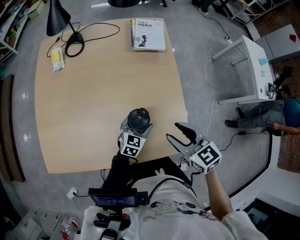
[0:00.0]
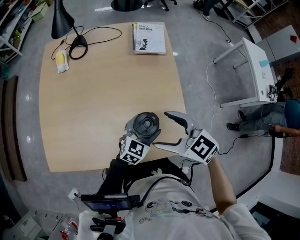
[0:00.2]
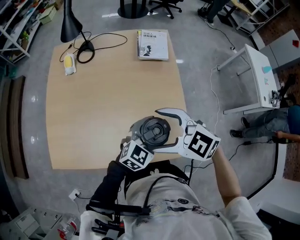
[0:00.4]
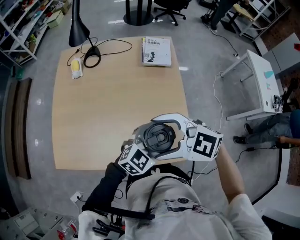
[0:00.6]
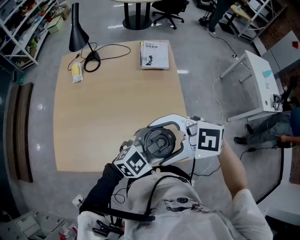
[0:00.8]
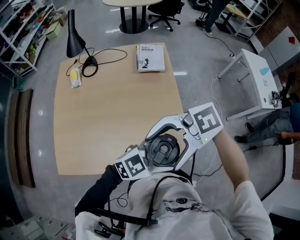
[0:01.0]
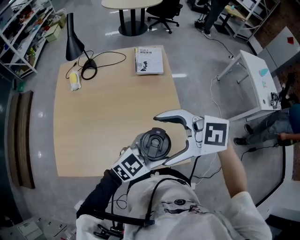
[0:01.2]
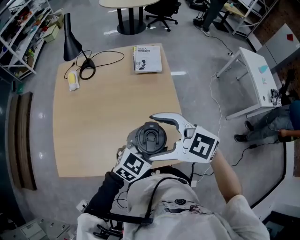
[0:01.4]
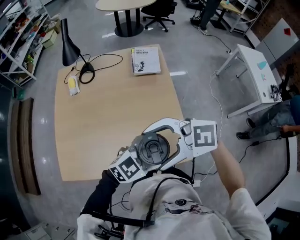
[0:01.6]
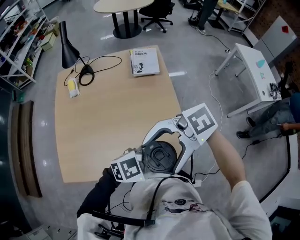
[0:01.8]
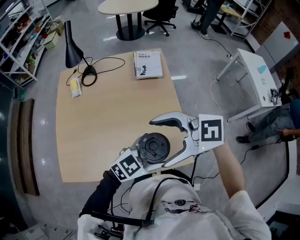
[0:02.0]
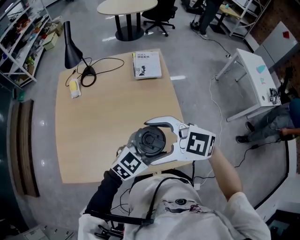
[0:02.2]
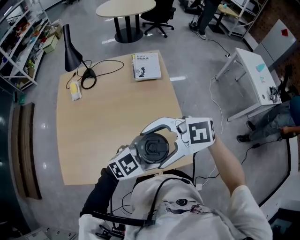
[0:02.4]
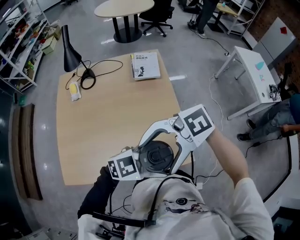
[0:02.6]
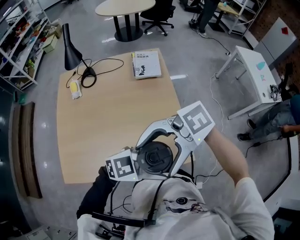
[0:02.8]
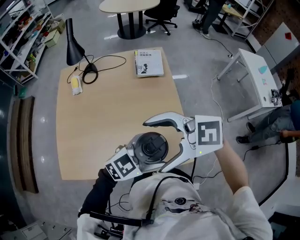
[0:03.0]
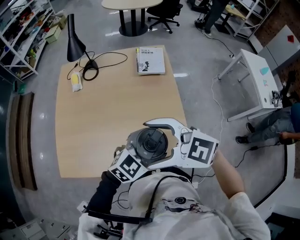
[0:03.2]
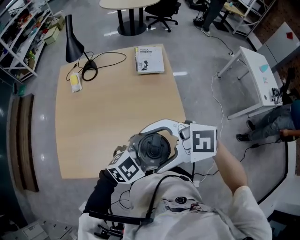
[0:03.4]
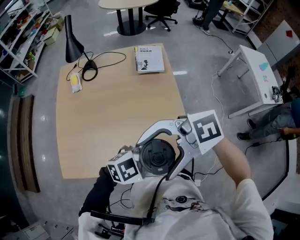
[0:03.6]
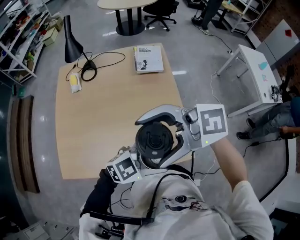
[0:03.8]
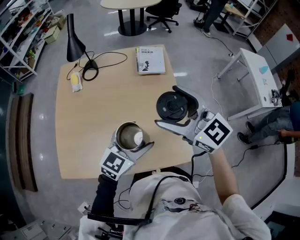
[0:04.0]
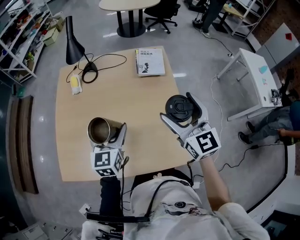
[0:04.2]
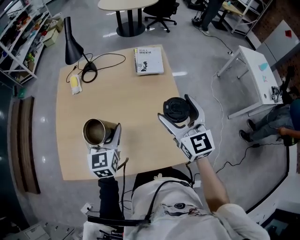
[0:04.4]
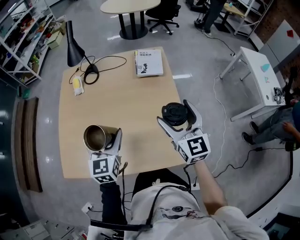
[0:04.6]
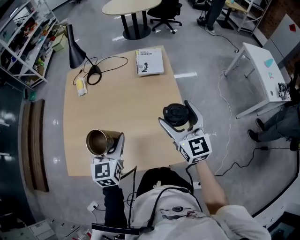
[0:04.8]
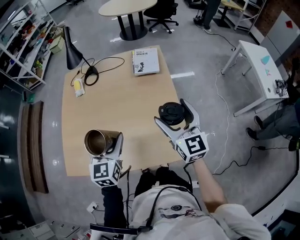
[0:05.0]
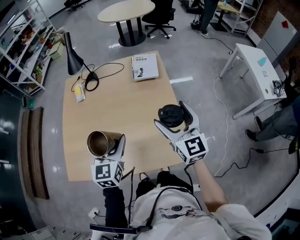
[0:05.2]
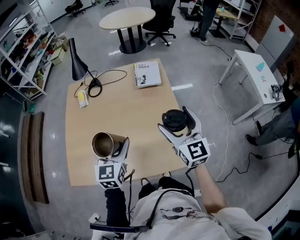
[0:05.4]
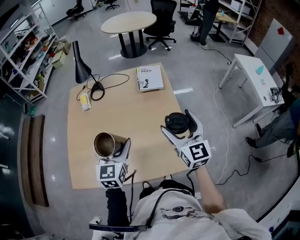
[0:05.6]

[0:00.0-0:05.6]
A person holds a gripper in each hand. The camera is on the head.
0:00.0 to 0:01.4: The right gripper heads upward, covering roughly 15 cm, swivels some 40 degrees, and opens up, while the left gripper moves upward, about 25 cm, and rotates roughly 20 degrees.
0:01.4 to 0:02.8: The right gripper moves roughly 10 cm, and swivels about 50 degrees. The left gripper shifts by roughly 10 cm, and changes its angle by about 40 degrees.
0:02.8 to 0:04.2: The right gripper changes place by roughly 20 cm, and turns by approximately 100 degrees. The left gripper moves approximately 30 cm, and turns by roughly 90 degrees.
0:04.2 to 0:05.6: The two grippers go some 5 cm backward.

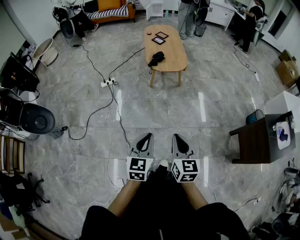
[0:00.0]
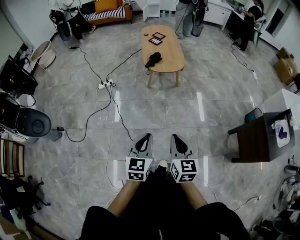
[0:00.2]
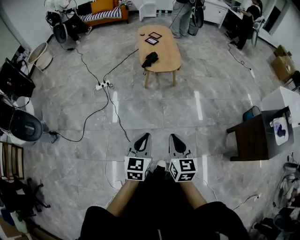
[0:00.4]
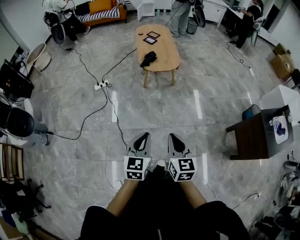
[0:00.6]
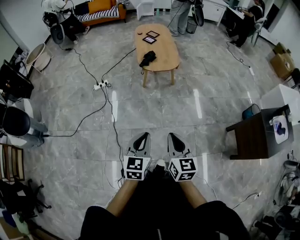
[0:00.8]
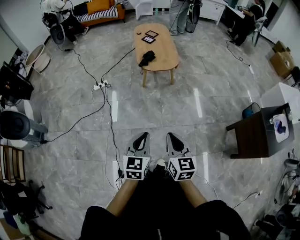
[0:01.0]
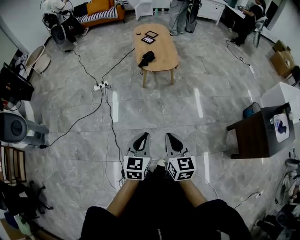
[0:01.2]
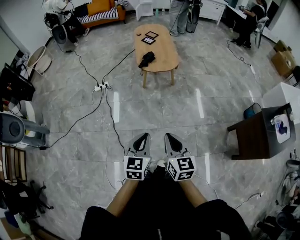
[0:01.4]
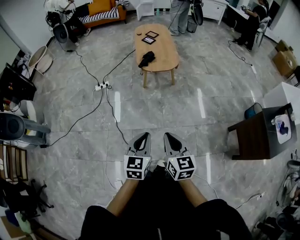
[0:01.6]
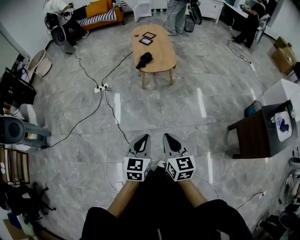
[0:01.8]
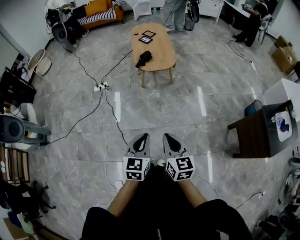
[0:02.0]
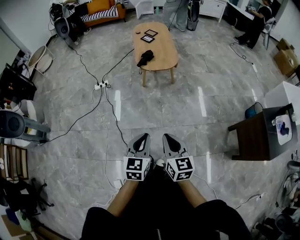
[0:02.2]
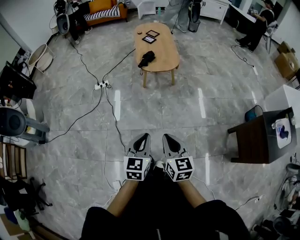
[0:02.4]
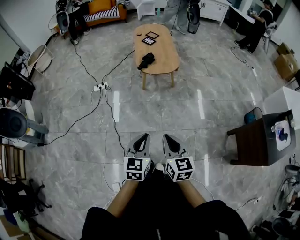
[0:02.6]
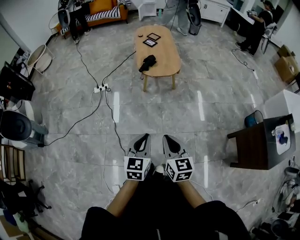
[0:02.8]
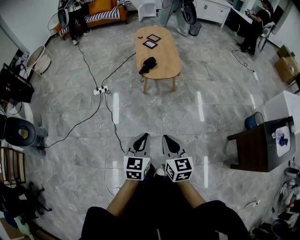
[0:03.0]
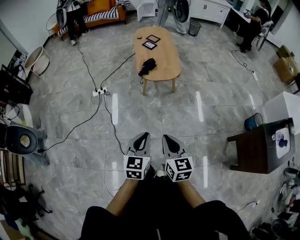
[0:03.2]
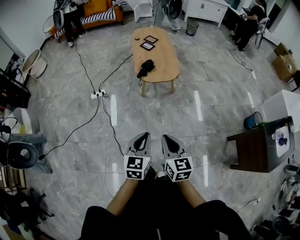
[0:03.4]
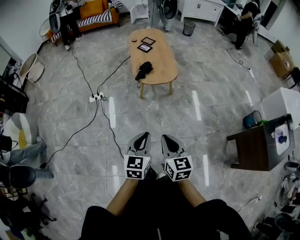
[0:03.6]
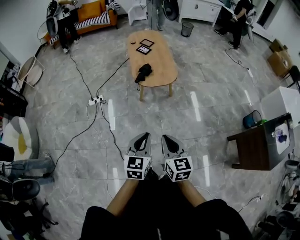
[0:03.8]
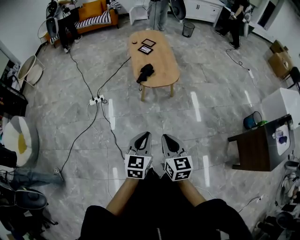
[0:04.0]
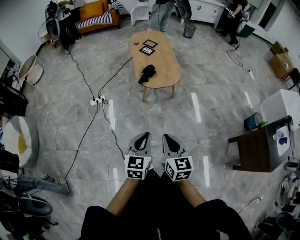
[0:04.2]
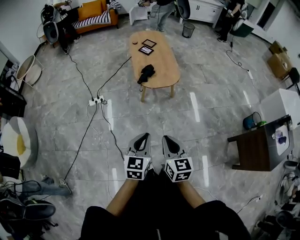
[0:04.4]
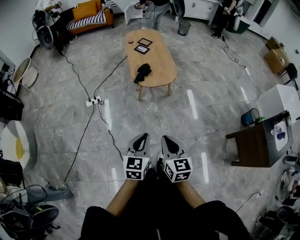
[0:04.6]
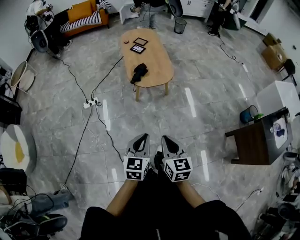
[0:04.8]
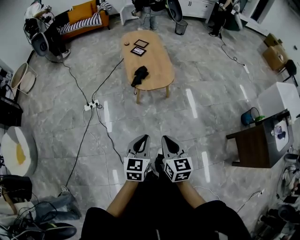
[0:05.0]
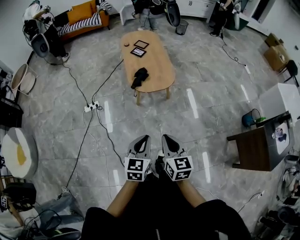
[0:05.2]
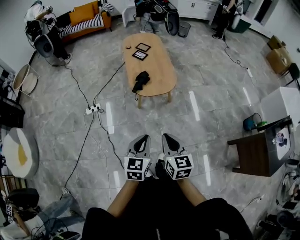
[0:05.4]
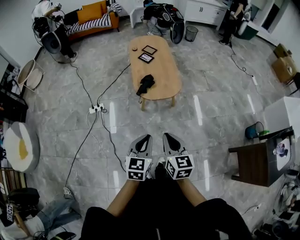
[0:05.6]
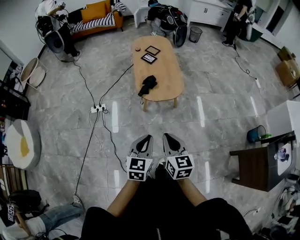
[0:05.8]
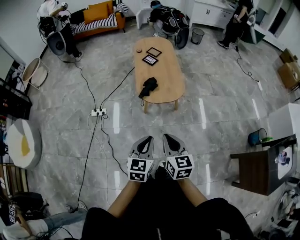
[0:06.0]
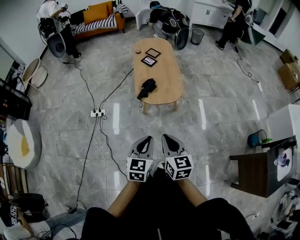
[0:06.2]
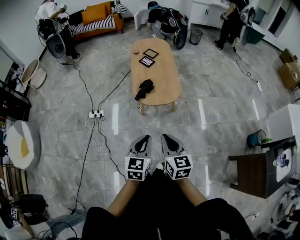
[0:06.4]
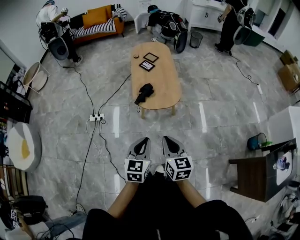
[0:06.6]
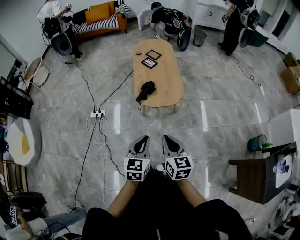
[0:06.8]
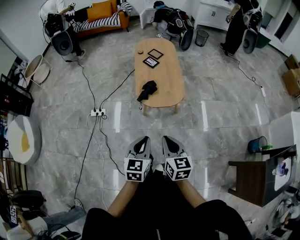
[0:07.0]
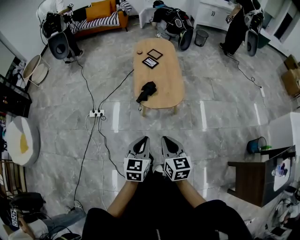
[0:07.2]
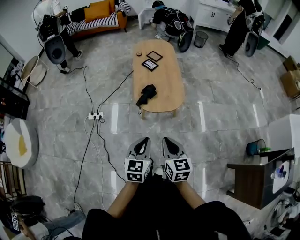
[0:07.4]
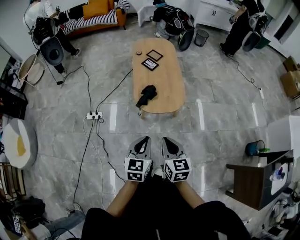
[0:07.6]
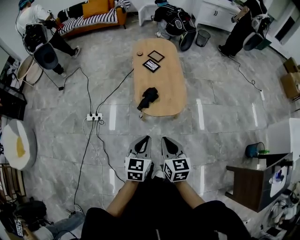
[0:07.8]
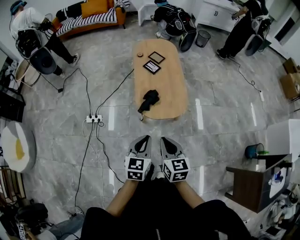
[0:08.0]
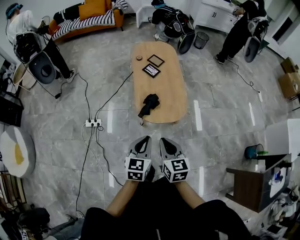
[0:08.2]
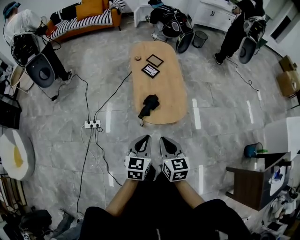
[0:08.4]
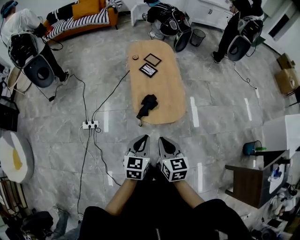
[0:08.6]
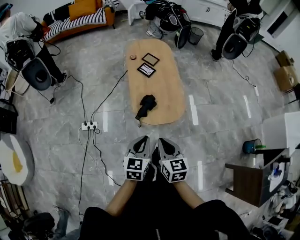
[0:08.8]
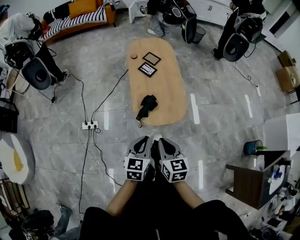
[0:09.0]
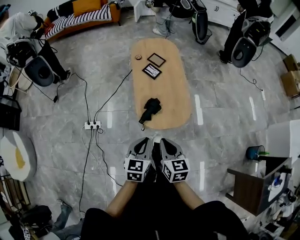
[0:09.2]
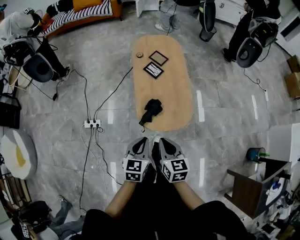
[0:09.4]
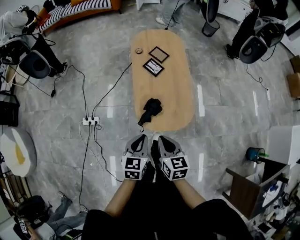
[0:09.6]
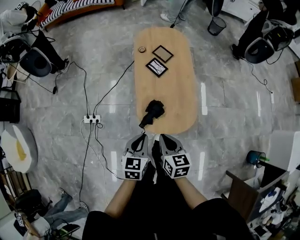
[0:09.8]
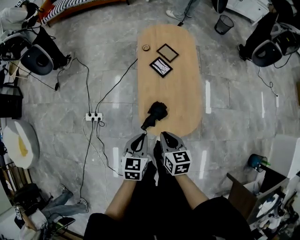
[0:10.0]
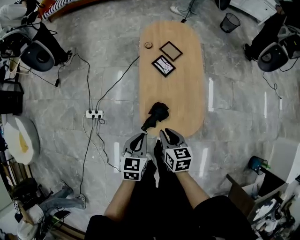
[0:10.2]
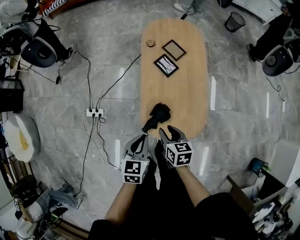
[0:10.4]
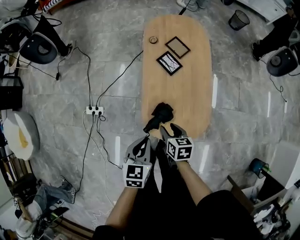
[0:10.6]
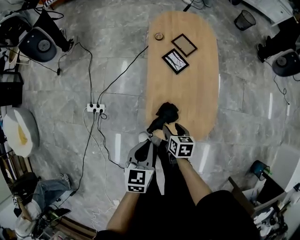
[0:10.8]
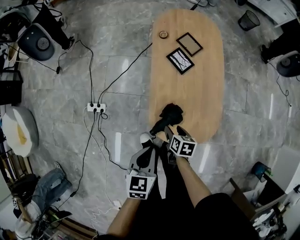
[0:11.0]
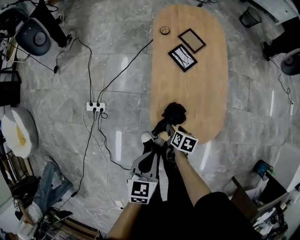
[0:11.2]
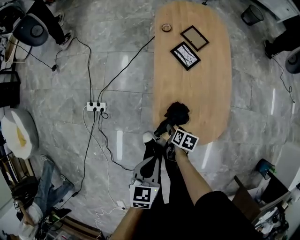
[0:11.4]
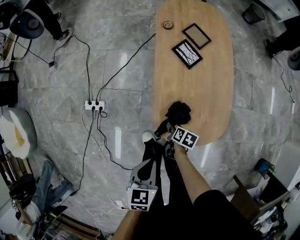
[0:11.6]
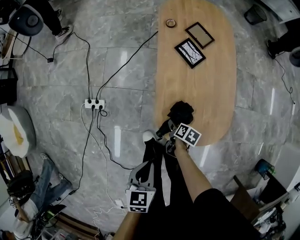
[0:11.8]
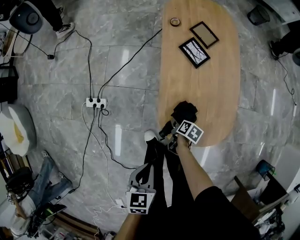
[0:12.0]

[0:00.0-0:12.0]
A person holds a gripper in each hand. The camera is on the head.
0:00.0 to 0:01.6: The left gripper shifts approximately 5 cm to the right.
0:01.6 to 0:03.0: The grippers both shift forward by approximately 10 cm.
0:03.0 to 0:04.4: Both grippers move forward and to the left, some 10 cm.
0:04.4 to 0:06.0: Both grippers travel together forward, about 15 cm.
0:06.0 to 0:07.6: The grippers both shift forward by about 10 cm.
0:07.6 to 0:09.0: The left gripper moves forward, some 15 cm. The right gripper travels forward and to the left by approximately 15 cm.
0:09.0 to 0:10.4: Both grippers travel together forward and downward, roughly 25 cm. The right gripper rotates roughly 20 degrees, and opens up.
0:10.4 to 0:12.0: The right gripper is displaced downward by some 30 cm, twists about 40 degrees clockwise, seen from behind, and opens. Meanwhile the left gripper is displaced downward, to the left and backward by approximately 15 cm.

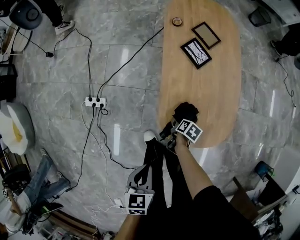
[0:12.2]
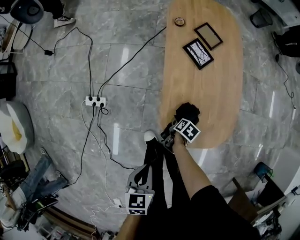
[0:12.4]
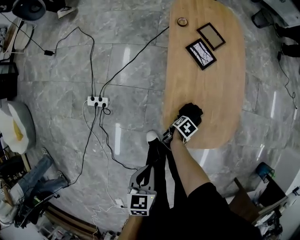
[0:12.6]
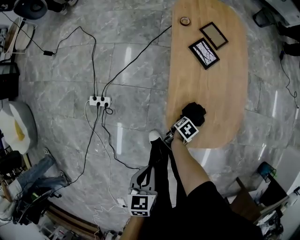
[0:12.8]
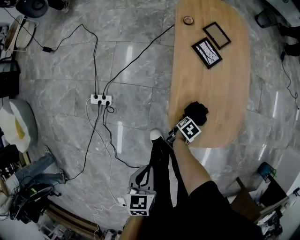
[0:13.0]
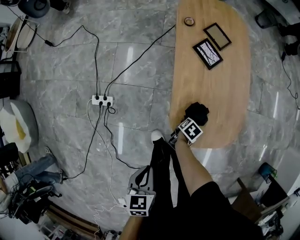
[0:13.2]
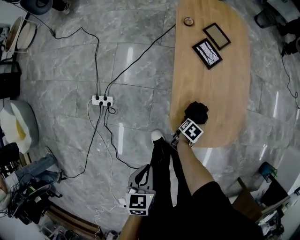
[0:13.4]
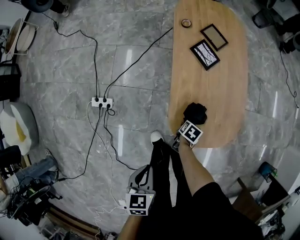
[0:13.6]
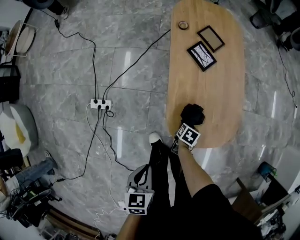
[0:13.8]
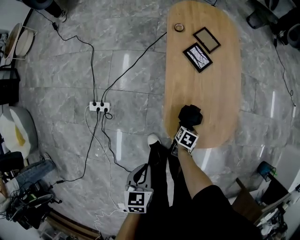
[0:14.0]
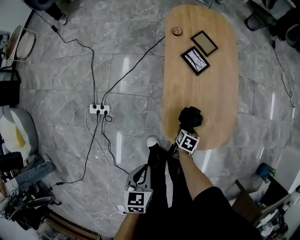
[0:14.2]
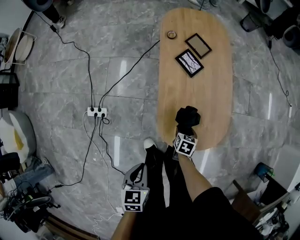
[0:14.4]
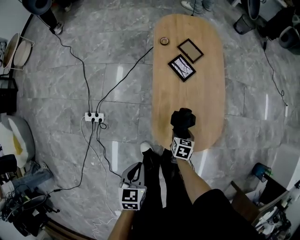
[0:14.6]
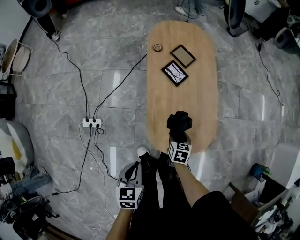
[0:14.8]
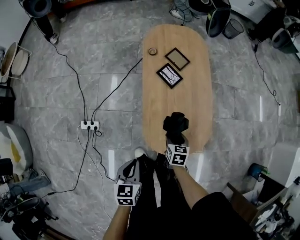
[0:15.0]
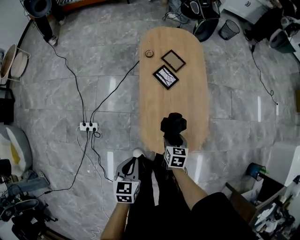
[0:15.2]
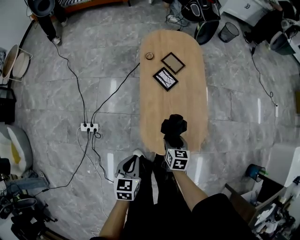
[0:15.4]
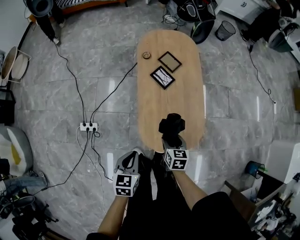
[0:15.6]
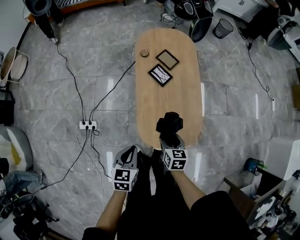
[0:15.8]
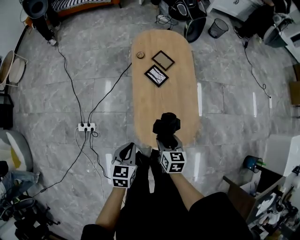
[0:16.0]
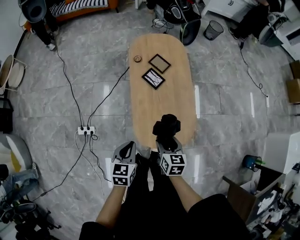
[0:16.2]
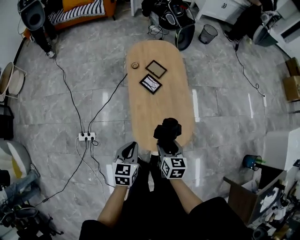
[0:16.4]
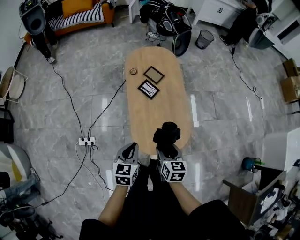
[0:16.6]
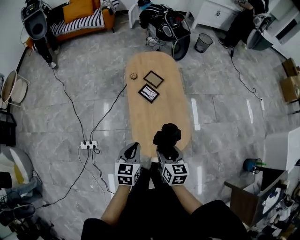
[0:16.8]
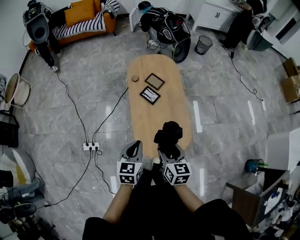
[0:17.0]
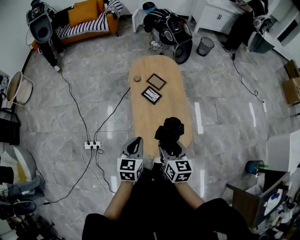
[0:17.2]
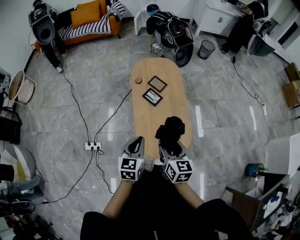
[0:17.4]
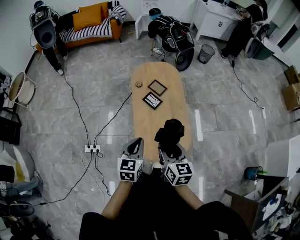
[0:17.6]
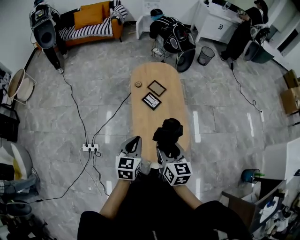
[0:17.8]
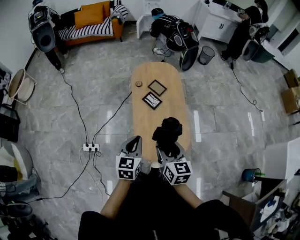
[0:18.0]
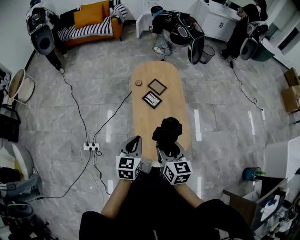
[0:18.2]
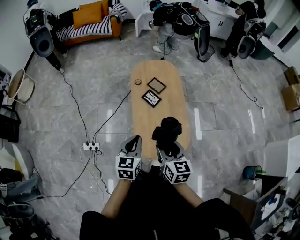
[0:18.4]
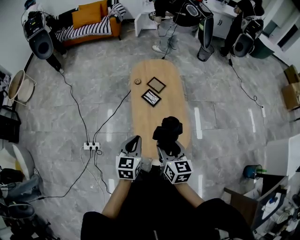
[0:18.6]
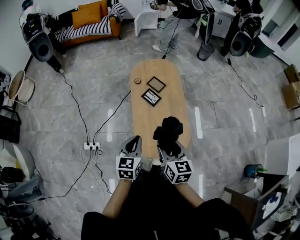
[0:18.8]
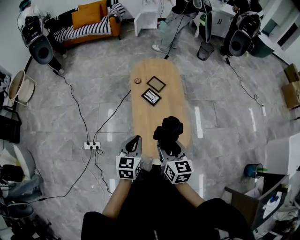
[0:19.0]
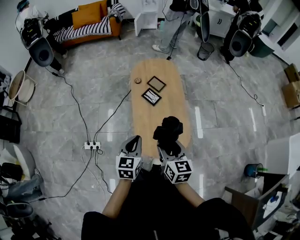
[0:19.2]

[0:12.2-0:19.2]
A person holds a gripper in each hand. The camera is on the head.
0:13.6 to 0:15.0: The left gripper changes place by some 10 cm. Meanwhile the right gripper moves upward, roughly 15 cm, and rotates roughly 30 degrees.
0:15.0 to 0:16.4: The left gripper moves upward and forward, roughly 10 cm; the right gripper moves upward, approximately 20 cm.
0:16.4 to 0:17.8: The left gripper is displaced upward by roughly 10 cm. Meanwhile the right gripper moves upward, about 15 cm.
0:17.8 to 0:19.2: There are only small adjustments of the grippers.
